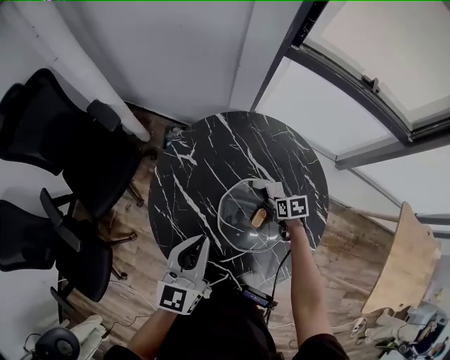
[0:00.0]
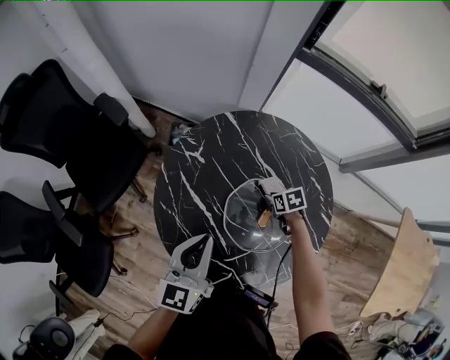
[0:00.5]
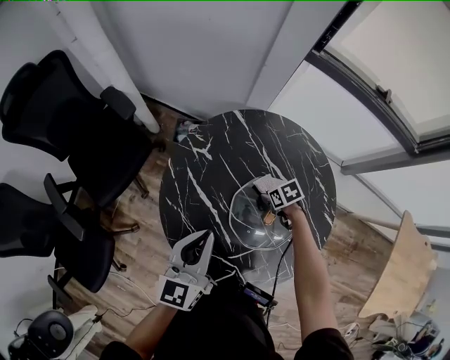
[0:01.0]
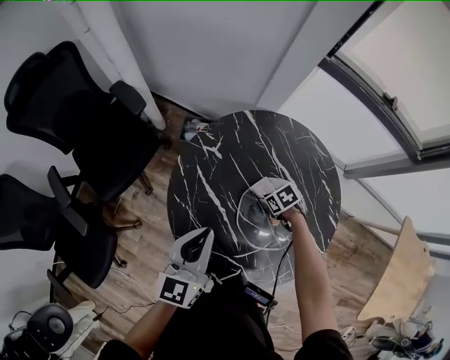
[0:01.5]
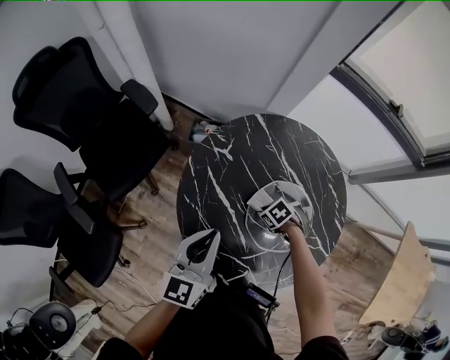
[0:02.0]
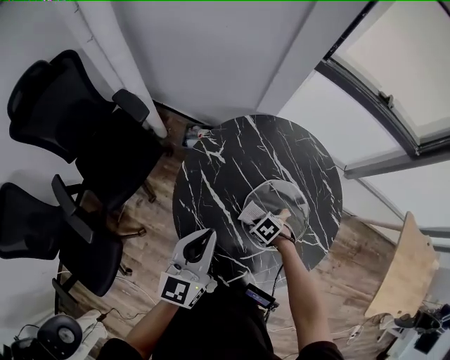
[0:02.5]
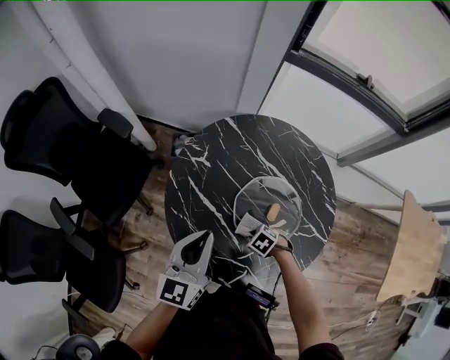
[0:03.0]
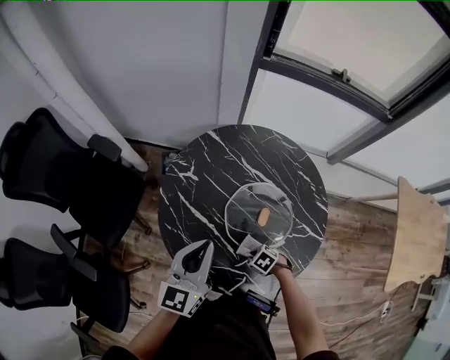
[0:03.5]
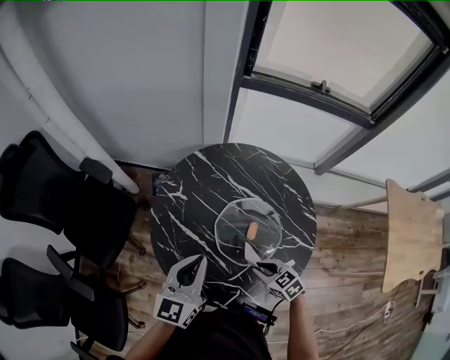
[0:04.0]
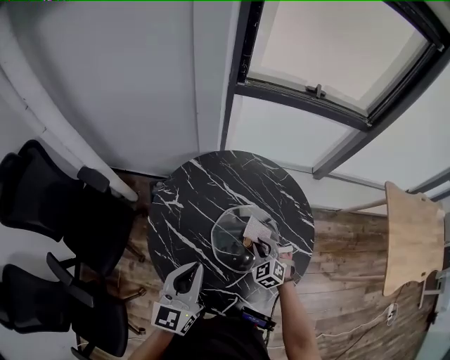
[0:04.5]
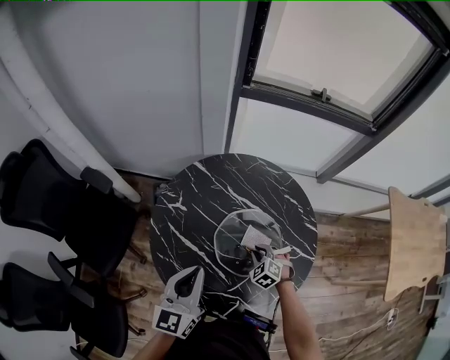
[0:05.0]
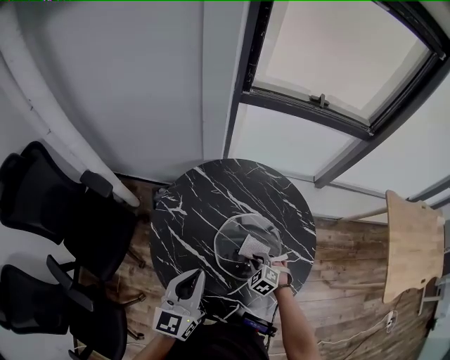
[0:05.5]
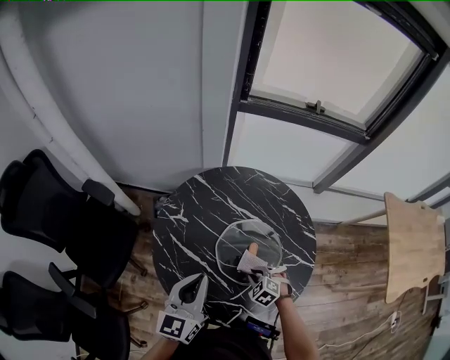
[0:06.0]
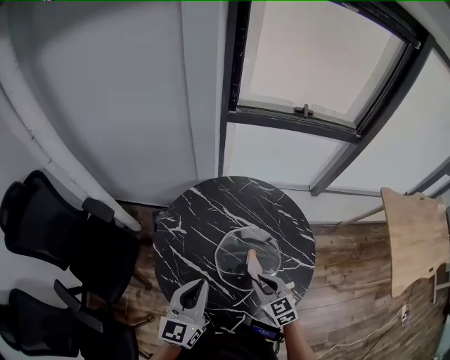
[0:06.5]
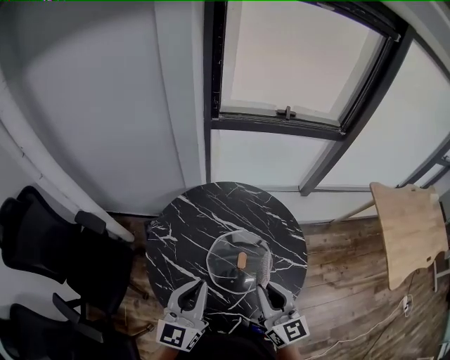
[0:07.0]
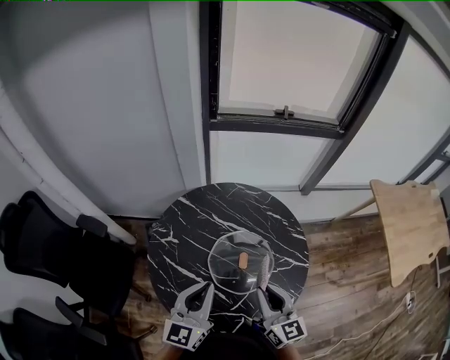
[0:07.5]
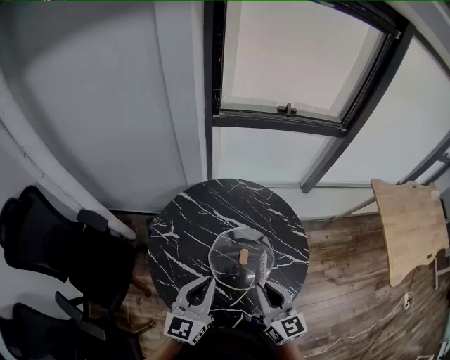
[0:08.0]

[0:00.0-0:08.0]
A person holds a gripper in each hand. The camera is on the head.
0:00.0 to 0:02.0: The left gripper moves approximately 10 cm, while the right gripper ends up some 20 cm from where it was, and rotates some 40 degrees.
0:02.0 to 0:04.0: The left gripper ends up some 10 cm from where it was. Meanwhile the right gripper ends up about 20 cm from where it was, and changes its angle by about 40 degrees.
0:04.0 to 0:06.0: The right gripper moves downward, approximately 10 cm, goes forward and returns, some 10 cm each way, and rotates about 30 degrees.
0:06.0 to 0:08.0: The right gripper moves upward, roughly 30 cm, and tilts its fingers some 60 degrees upward; the left gripper moves to the right, approximately 5 cm.

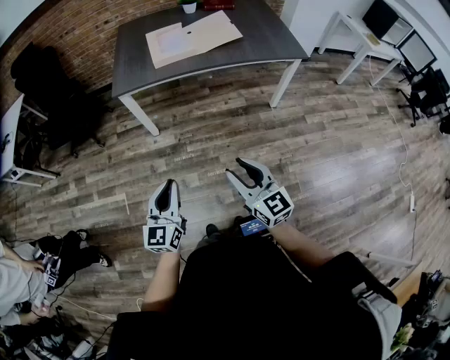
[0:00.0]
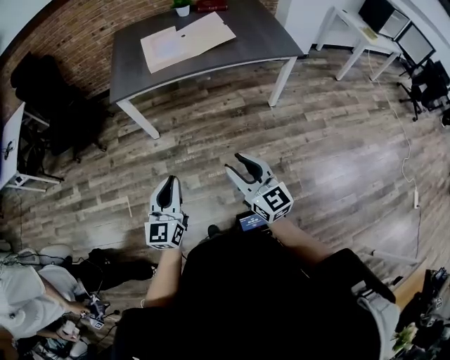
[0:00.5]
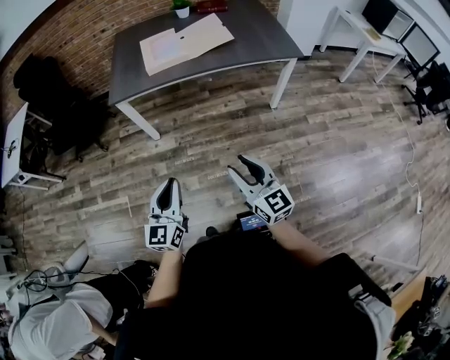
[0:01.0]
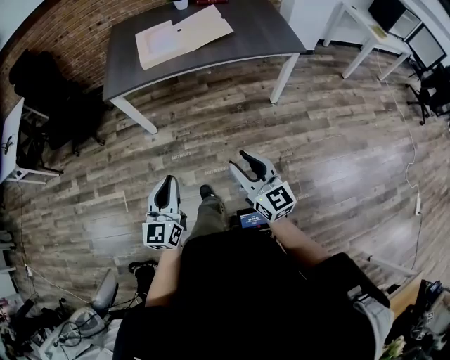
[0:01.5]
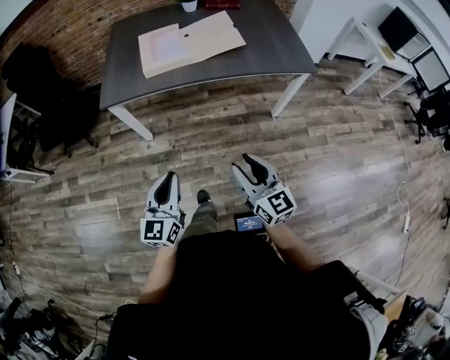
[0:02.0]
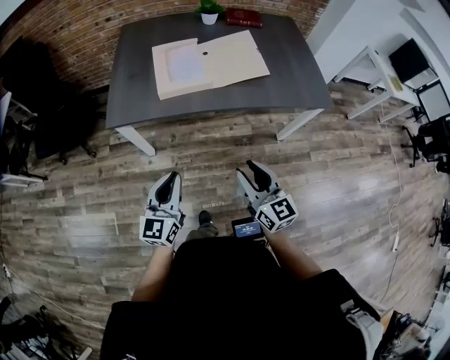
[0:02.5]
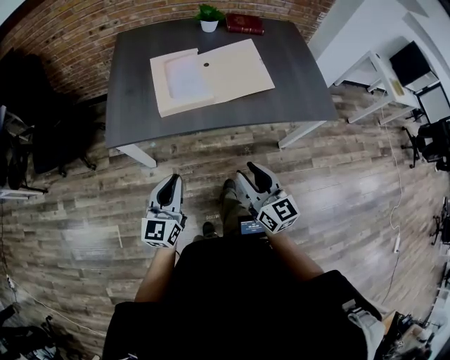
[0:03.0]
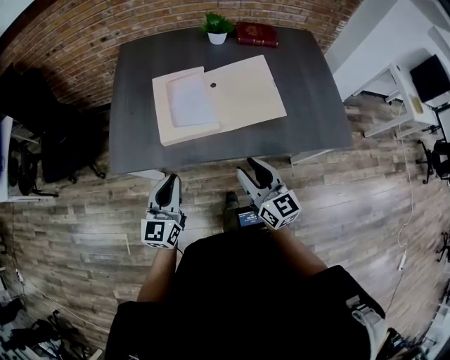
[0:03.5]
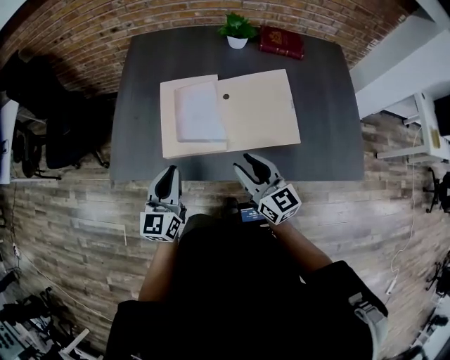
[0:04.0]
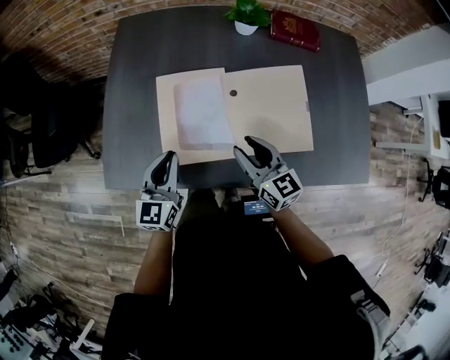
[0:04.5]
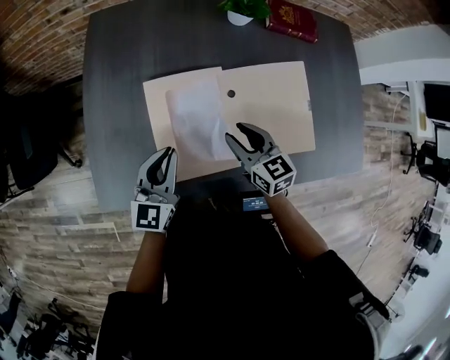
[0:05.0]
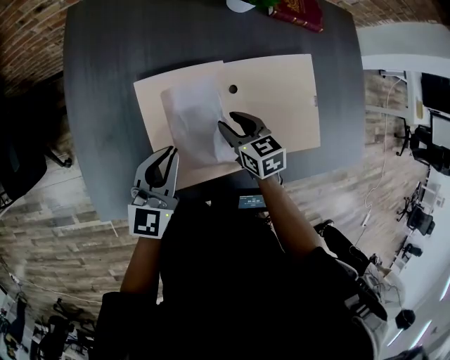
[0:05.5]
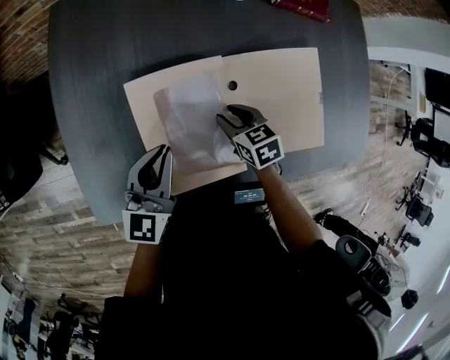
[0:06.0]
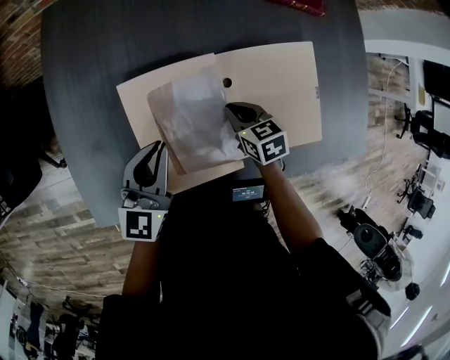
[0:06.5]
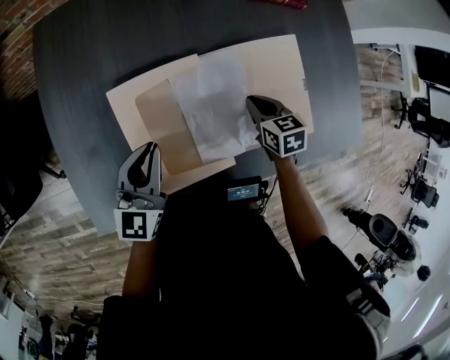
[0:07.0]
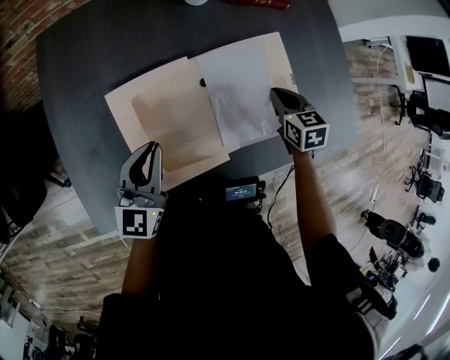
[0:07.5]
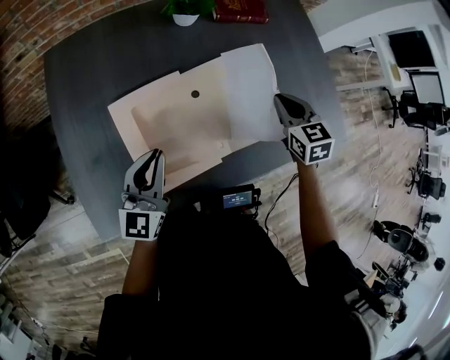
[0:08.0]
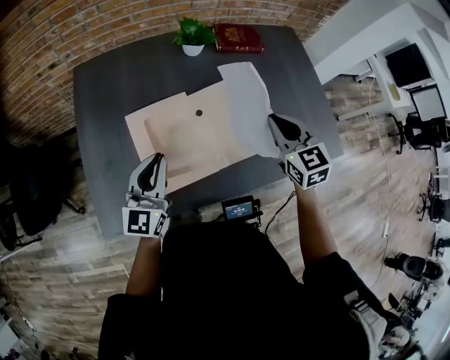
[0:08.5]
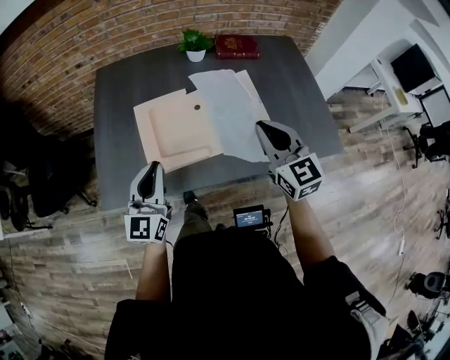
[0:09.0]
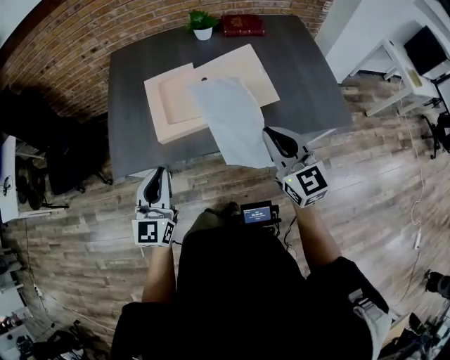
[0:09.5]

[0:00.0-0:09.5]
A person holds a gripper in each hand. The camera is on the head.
0:00.0 to 0:02.0: The grippers both shift forward and to the right by about 20 cm.
0:02.0 to 0:04.0: The two grippers travel together, forward, some 50 cm.
0:04.0 to 0:05.5: The grippers both shift forward and downward by about 25 cm. The right gripper angles its fingers downward, by about 40 degrees; the left gripper swivels about 20 degrees.
0:05.5 to 0:07.5: The right gripper moves to the right, approximately 20 cm, changes its angle by roughly 20 degrees, and closes up.
0:07.5 to 0:09.5: The grippers both shift backward and upward by some 40 cm. The right gripper points its fingers some 40 degrees further upward.

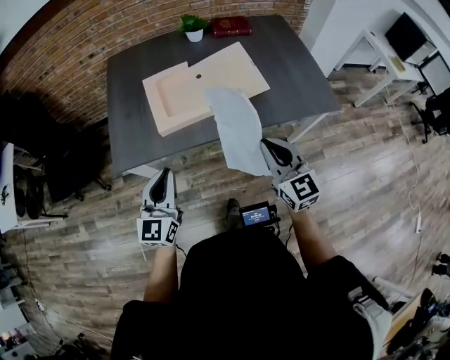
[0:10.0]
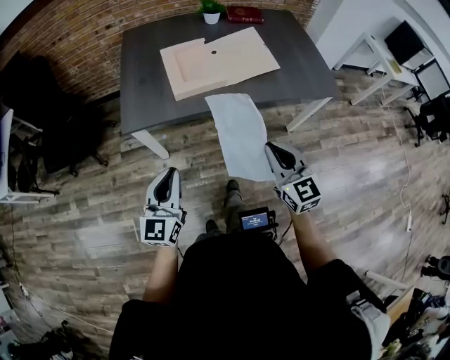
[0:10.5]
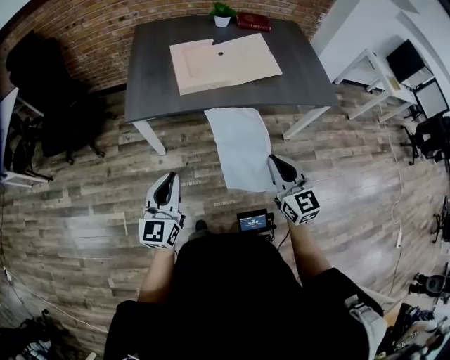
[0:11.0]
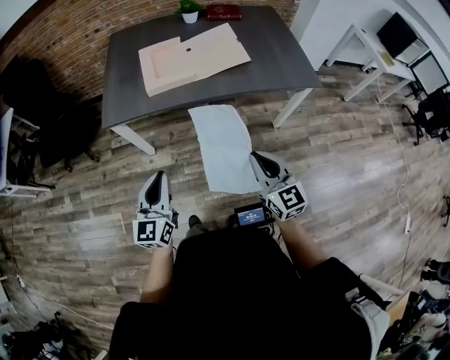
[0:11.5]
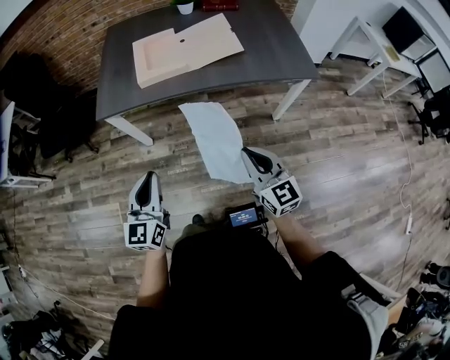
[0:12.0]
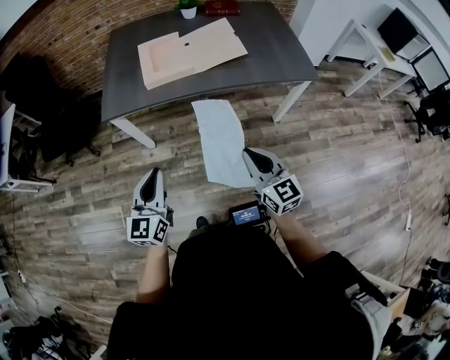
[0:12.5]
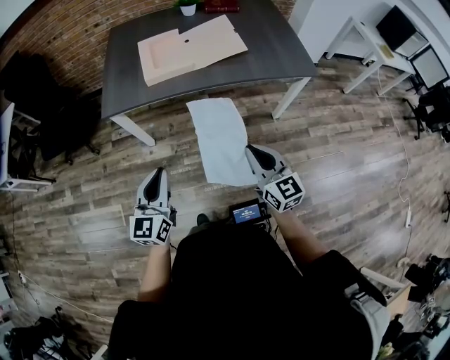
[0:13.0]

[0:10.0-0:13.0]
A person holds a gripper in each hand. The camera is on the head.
0:10.0 to 0:11.5: Both grippers move backward, some 25 cm.
0:11.5 to 0:13.0: The grippers move only a little.

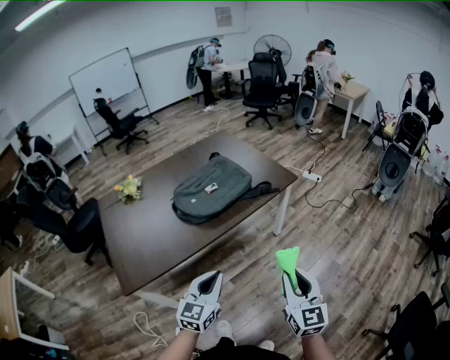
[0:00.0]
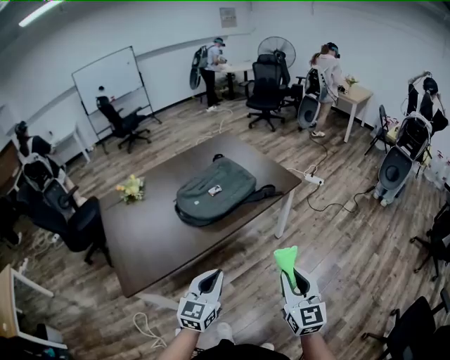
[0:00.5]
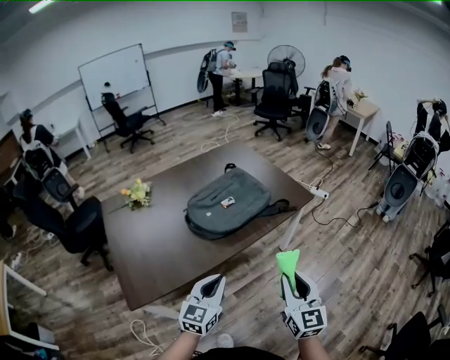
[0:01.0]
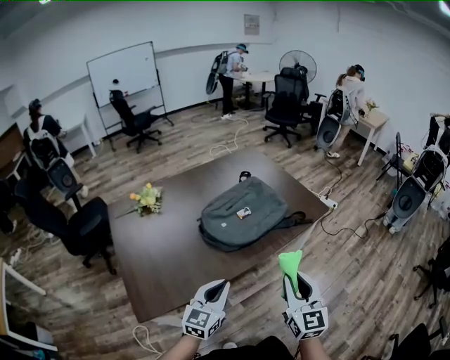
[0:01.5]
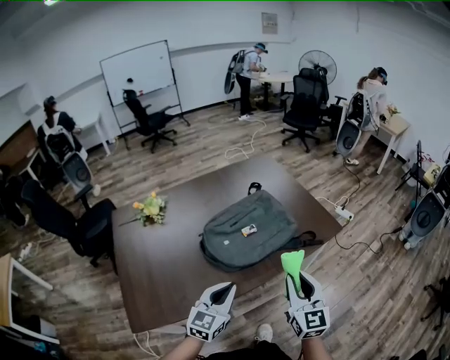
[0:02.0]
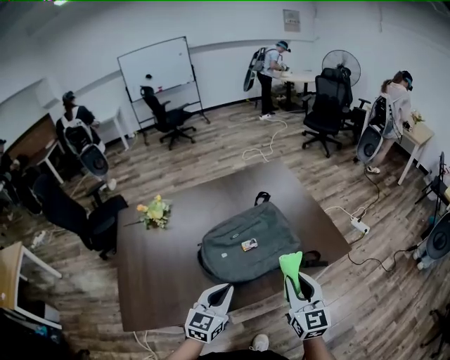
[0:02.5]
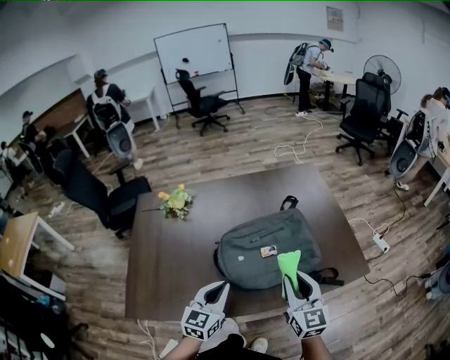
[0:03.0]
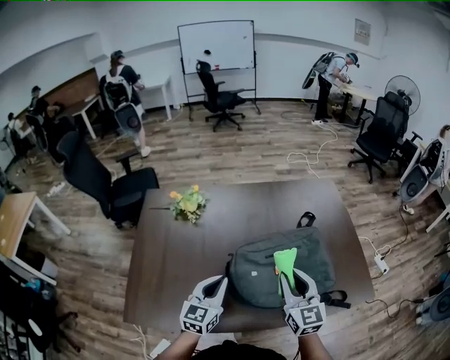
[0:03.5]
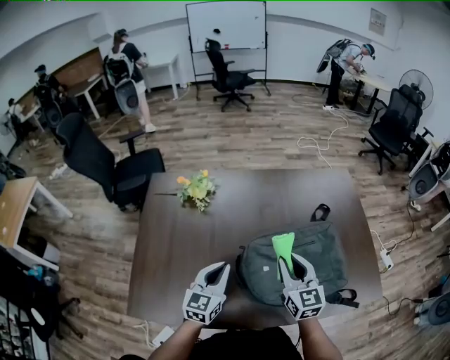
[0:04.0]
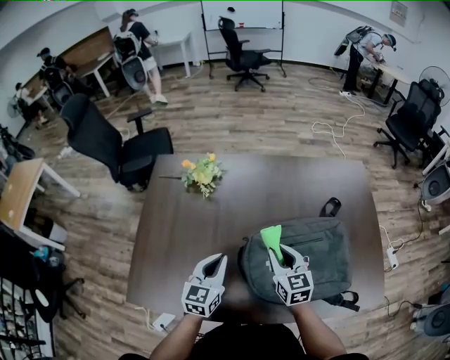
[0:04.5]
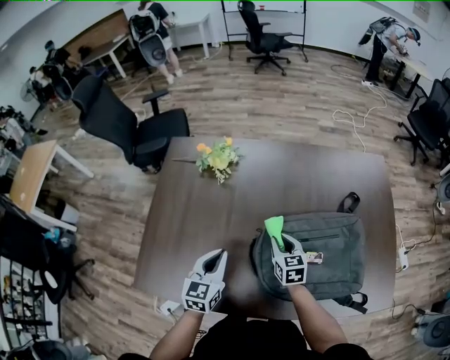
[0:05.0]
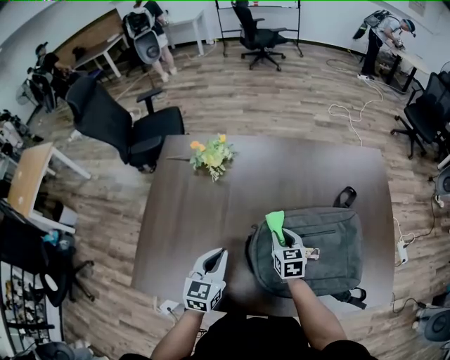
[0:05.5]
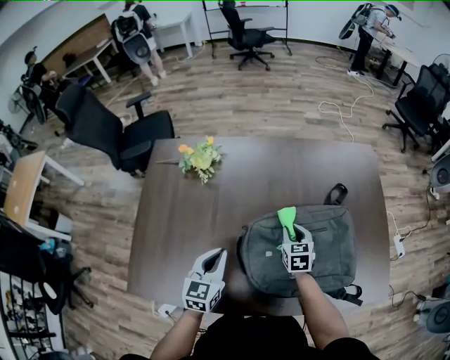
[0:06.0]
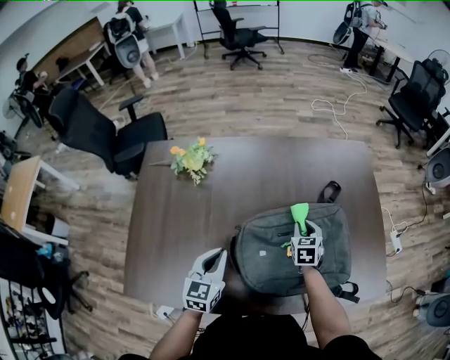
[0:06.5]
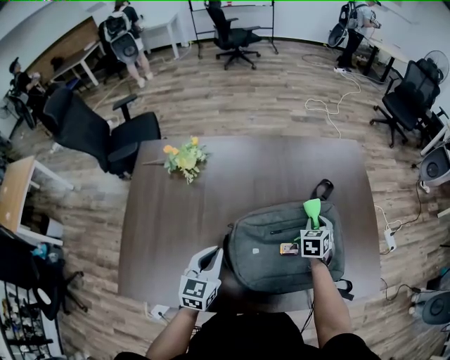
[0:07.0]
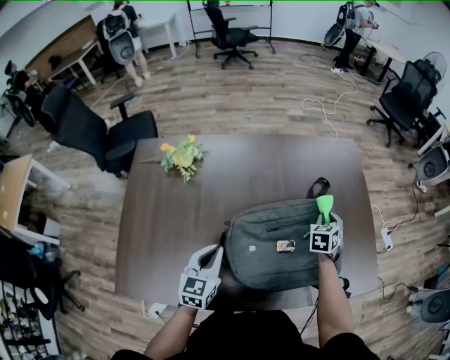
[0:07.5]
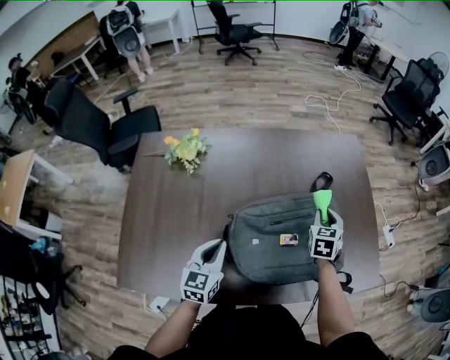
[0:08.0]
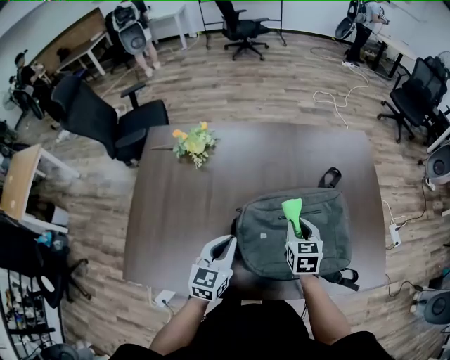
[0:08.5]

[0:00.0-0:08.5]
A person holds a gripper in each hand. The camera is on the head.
0:00.0 to 0:02.0: The grippers both shift forward and to the left by approximately 25 cm.
0:02.0 to 0:04.0: The left gripper ends up approximately 25 cm from where it was, and swivels about 30 degrees. Meanwhile the right gripper ends up roughly 30 cm from where it was, and swivels about 30 degrees.
0:04.0 to 0:06.5: The right gripper travels downward, forward and to the right by approximately 25 cm, and points its fingers roughly 30 degrees further downward.
0:06.5 to 0:08.5: The right gripper is displaced backward and upward by approximately 10 cm, and reaches some 15 cm to the right, then returns.
